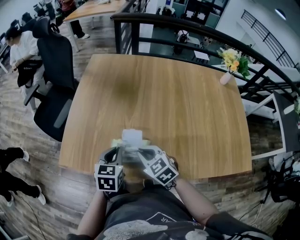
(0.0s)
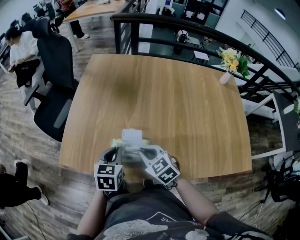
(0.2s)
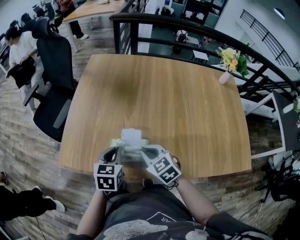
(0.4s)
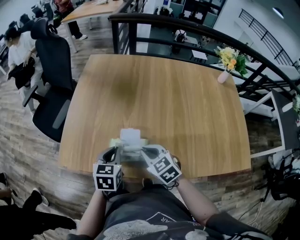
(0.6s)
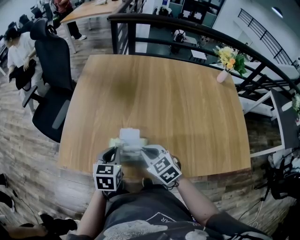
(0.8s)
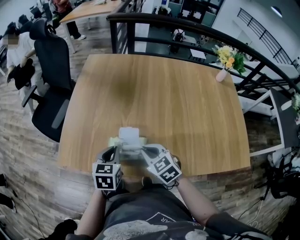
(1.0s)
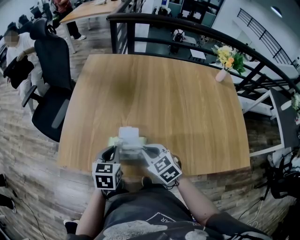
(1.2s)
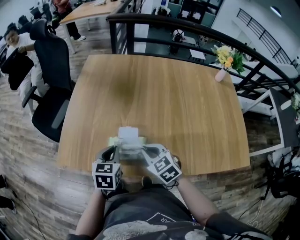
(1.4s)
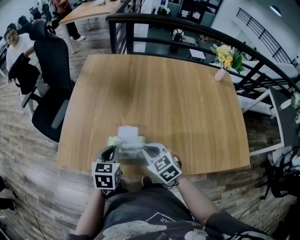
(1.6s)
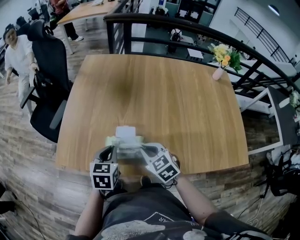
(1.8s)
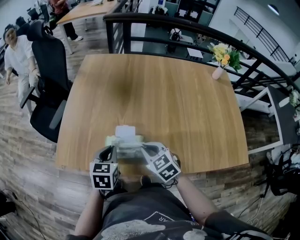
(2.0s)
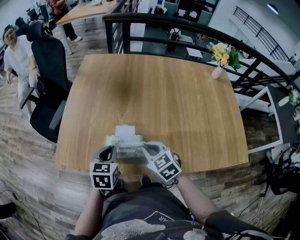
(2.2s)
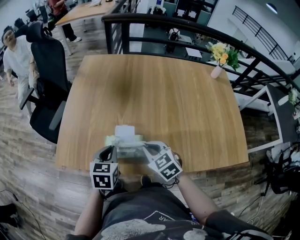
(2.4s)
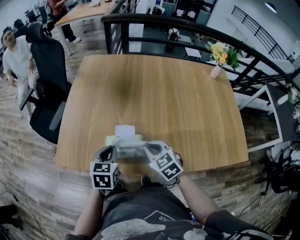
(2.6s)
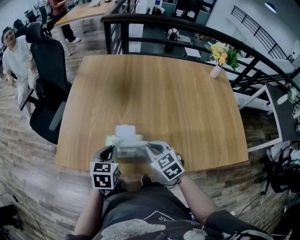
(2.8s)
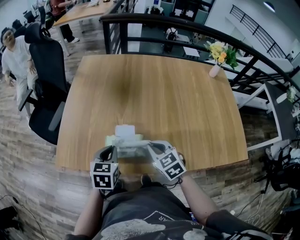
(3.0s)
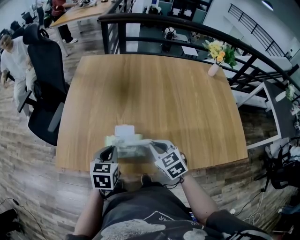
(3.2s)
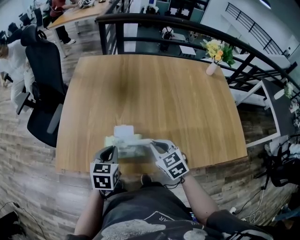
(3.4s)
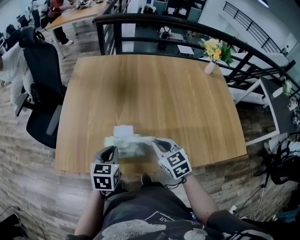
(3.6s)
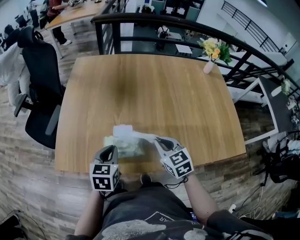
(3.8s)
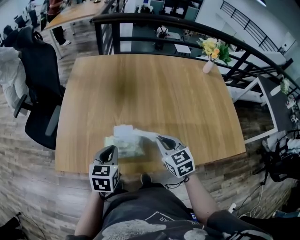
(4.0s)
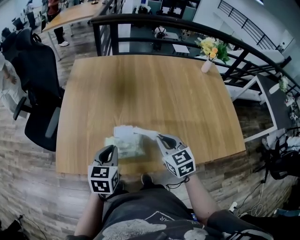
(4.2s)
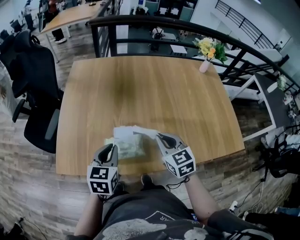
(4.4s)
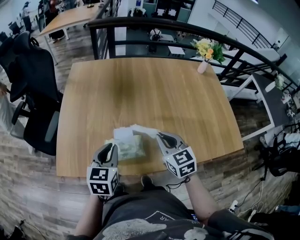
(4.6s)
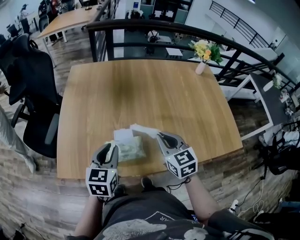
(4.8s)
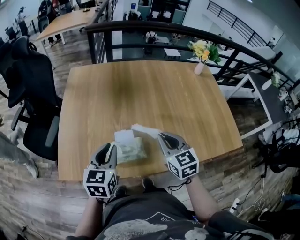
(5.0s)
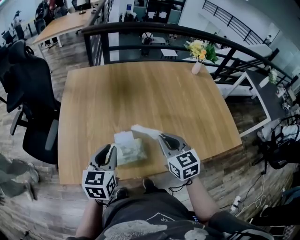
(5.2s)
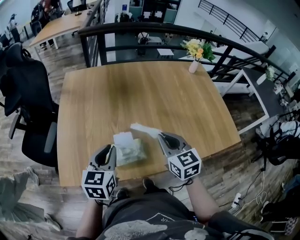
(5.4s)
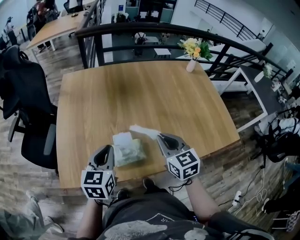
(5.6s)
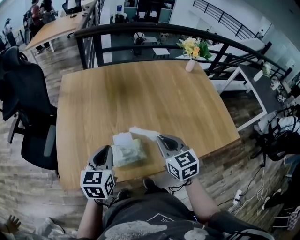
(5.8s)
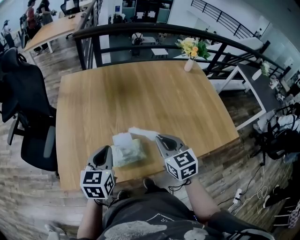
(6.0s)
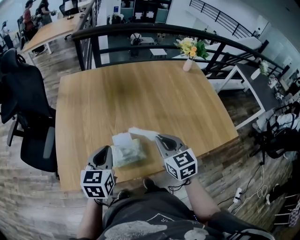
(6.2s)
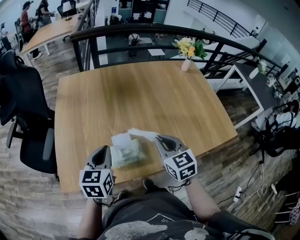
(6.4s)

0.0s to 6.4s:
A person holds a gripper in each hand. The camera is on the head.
0.0s to 1.6s: The grippers stay close to where they were, moving slightly.
1.6s to 3.2s: The grippers make only small movements.
3.2s to 4.8s: Both grippers travel together upward, approximately 10 cm. The right gripper rotates about 20 degrees.
4.8s to 6.4s: There are only small adjustments of the grippers.

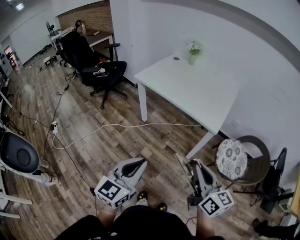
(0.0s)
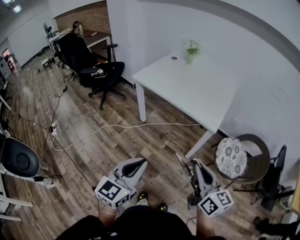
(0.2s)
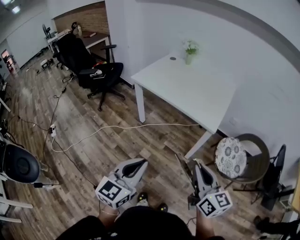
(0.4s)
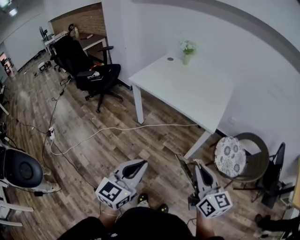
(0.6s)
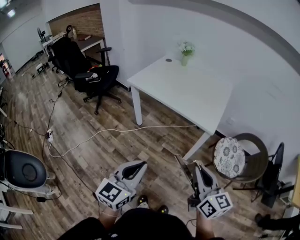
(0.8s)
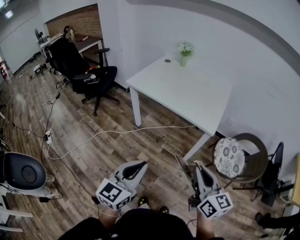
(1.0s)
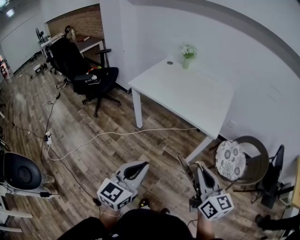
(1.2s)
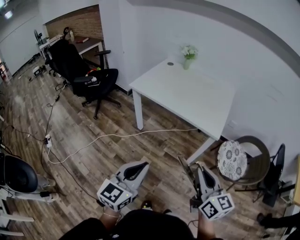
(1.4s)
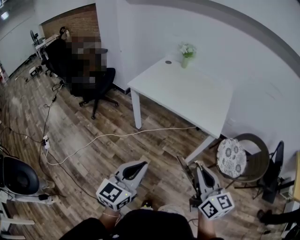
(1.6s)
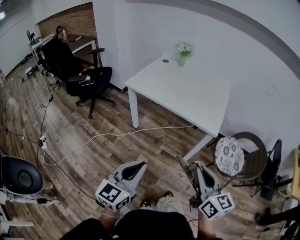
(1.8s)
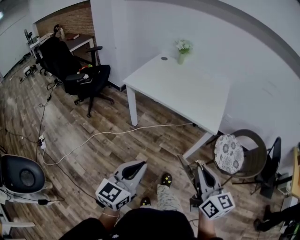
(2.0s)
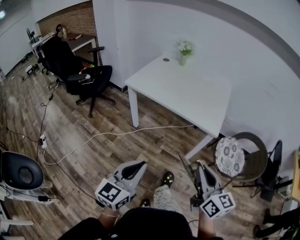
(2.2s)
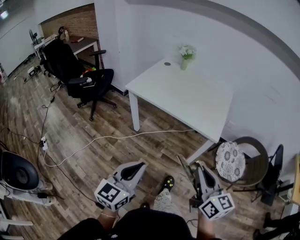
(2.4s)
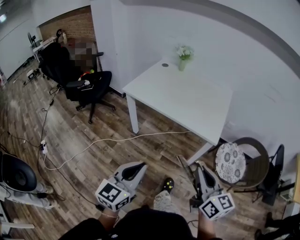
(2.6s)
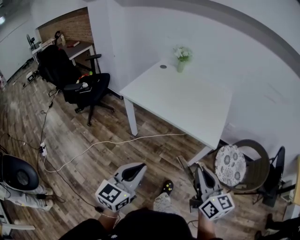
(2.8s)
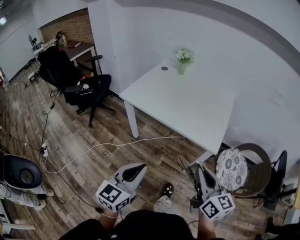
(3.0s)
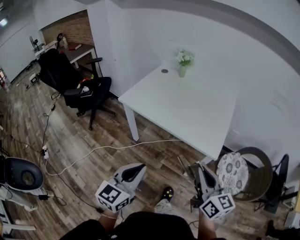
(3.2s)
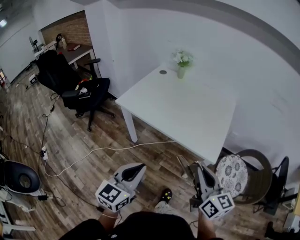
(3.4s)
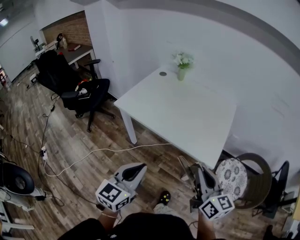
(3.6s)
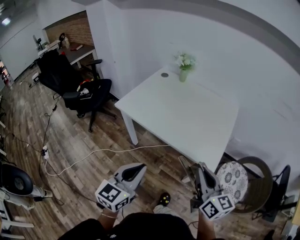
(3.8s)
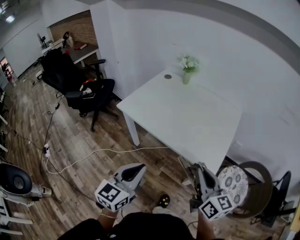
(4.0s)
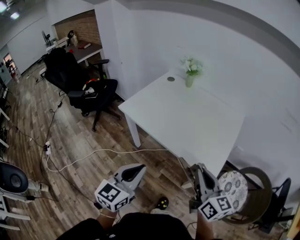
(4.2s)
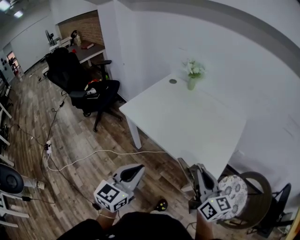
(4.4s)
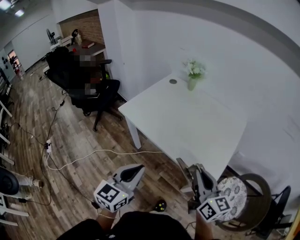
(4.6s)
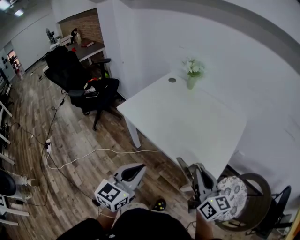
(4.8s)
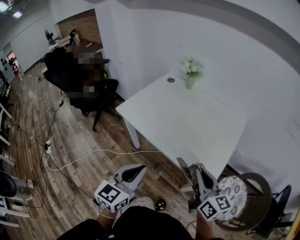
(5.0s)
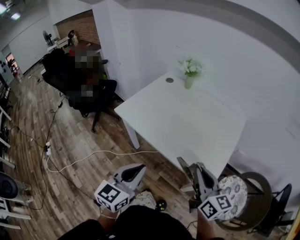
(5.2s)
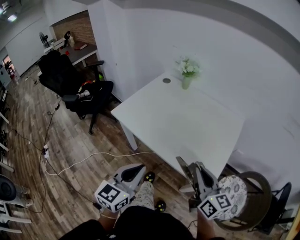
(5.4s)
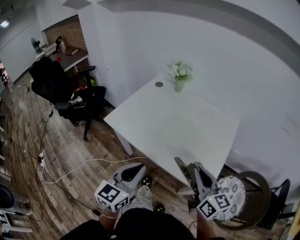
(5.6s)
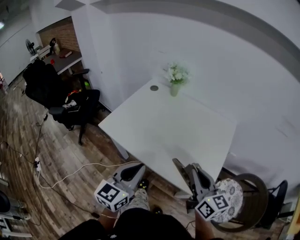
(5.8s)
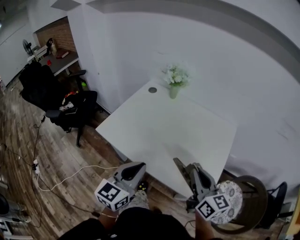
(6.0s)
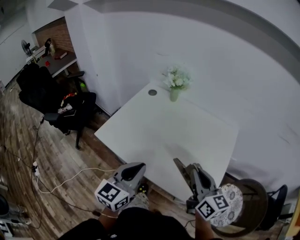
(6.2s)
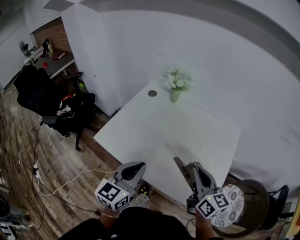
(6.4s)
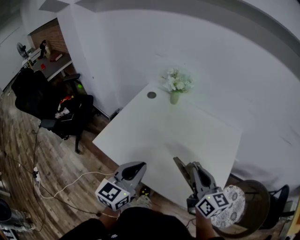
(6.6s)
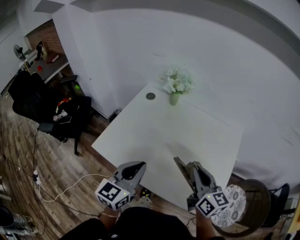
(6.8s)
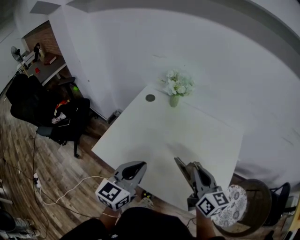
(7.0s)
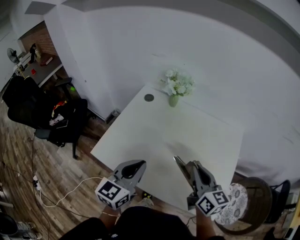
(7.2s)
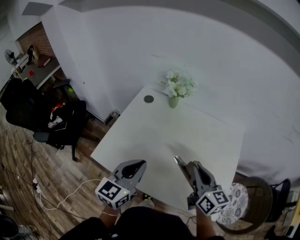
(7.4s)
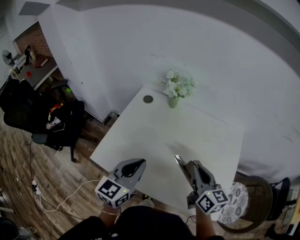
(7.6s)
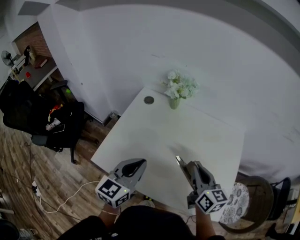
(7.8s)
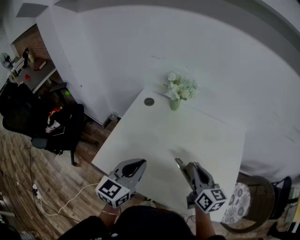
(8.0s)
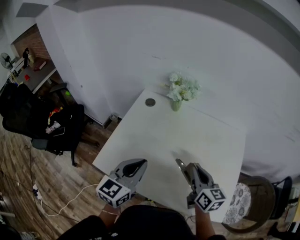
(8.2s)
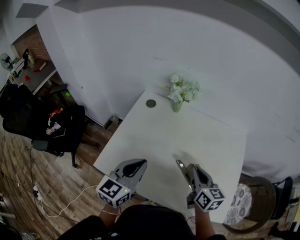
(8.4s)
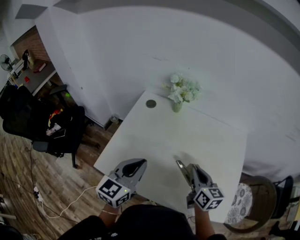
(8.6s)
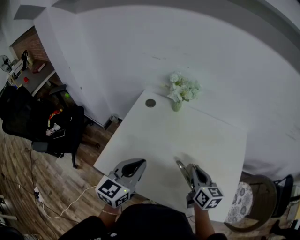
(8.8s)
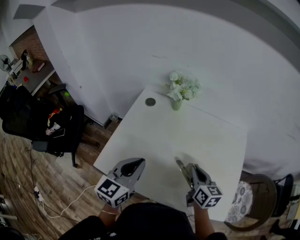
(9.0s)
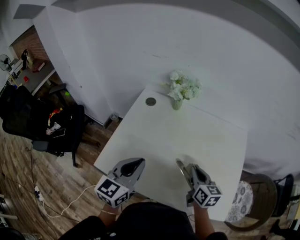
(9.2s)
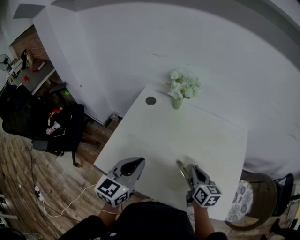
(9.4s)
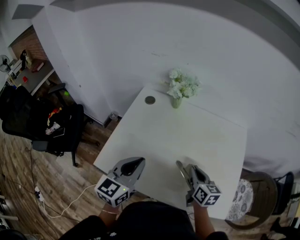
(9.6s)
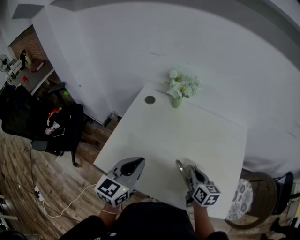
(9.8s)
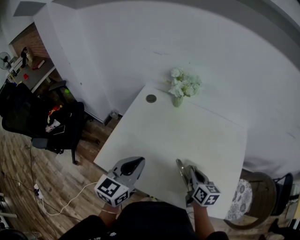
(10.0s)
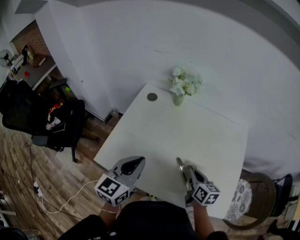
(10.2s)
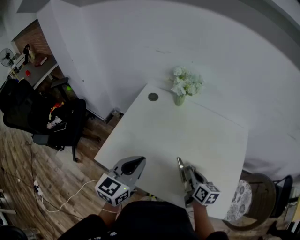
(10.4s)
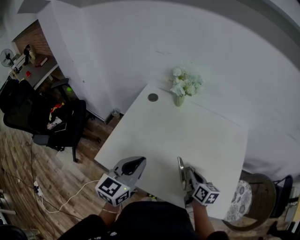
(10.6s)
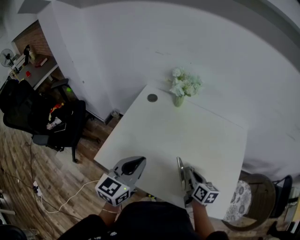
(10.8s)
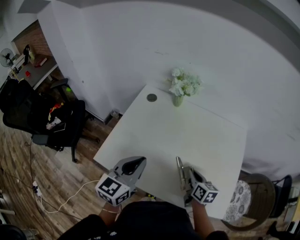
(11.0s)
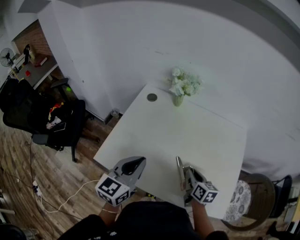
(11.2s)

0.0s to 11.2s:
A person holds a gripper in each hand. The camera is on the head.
0.0s to 1.6s: The right gripper travels to the left by approximately 5 cm. Meanwhile the left gripper is displaced to the left and forward by about 10 cm.
1.6s to 3.2s: Both grippers travel together forward, approximately 15 cm.
3.2s to 4.8s: The grippers both shift forward by approximately 15 cm.
4.8s to 6.4s: Both grippers move forward, some 20 cm.
6.4s to 8.0s: The left gripper is displaced forward and to the left by about 15 cm, while the right gripper heads forward, to the left and downward, covering some 15 cm.
8.0s to 9.6s: The right gripper travels downward by about 10 cm.
9.6s to 11.2s: The right gripper shifts by roughly 5 cm.

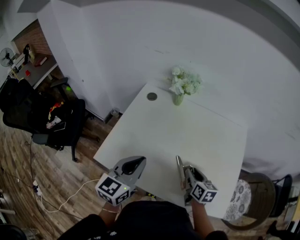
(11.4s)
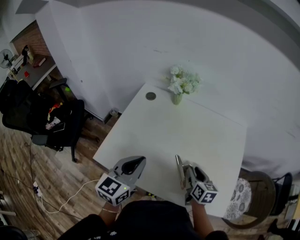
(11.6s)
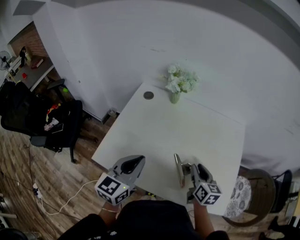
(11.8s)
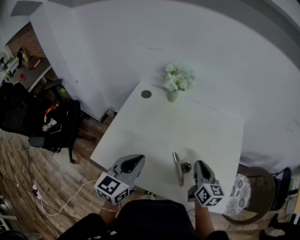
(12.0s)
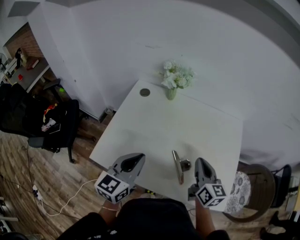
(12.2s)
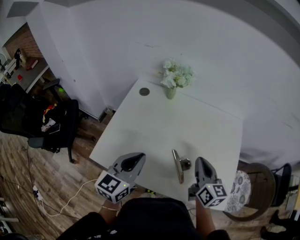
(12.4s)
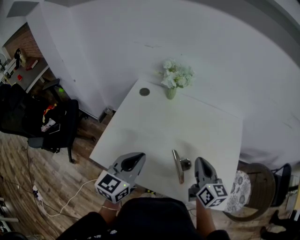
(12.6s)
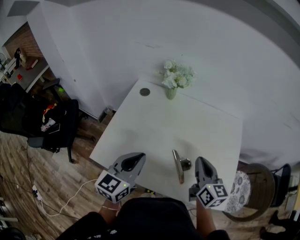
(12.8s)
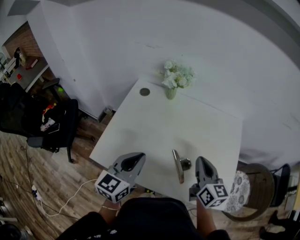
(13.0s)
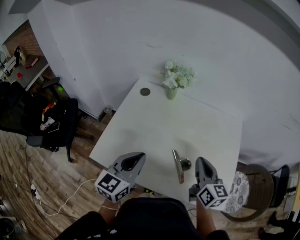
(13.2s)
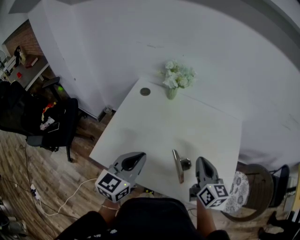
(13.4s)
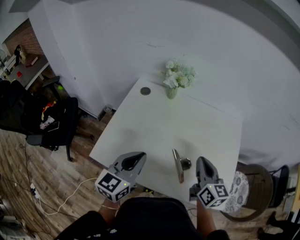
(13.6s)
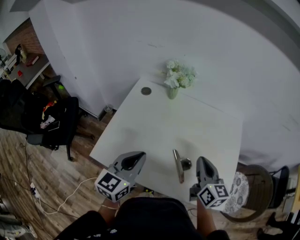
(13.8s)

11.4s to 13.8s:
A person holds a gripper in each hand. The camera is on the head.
11.4s to 12.6s: The right gripper goes some 10 cm upward, rotates approximately 20 degrees, and closes.
12.6s to 13.8s: Both grippers stay about where they are.

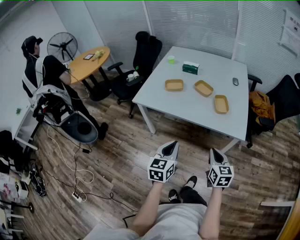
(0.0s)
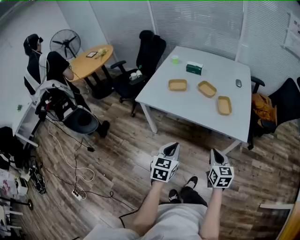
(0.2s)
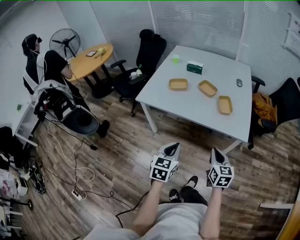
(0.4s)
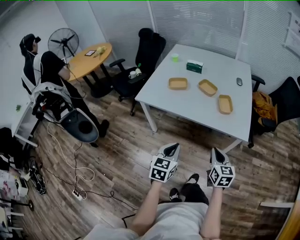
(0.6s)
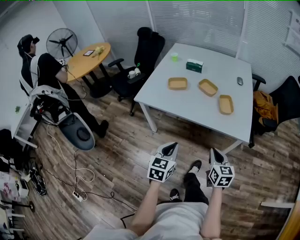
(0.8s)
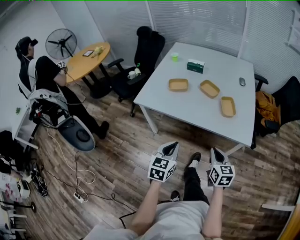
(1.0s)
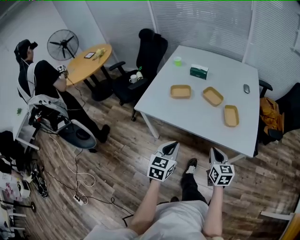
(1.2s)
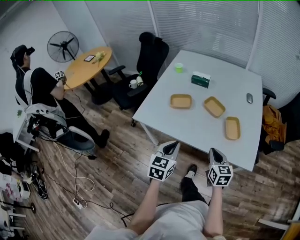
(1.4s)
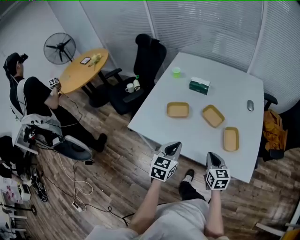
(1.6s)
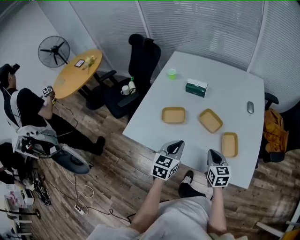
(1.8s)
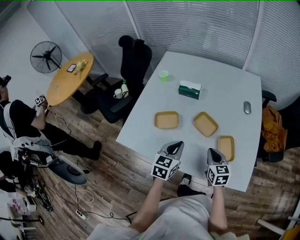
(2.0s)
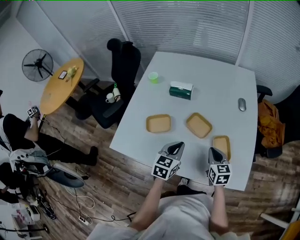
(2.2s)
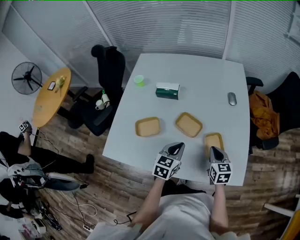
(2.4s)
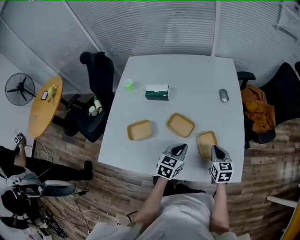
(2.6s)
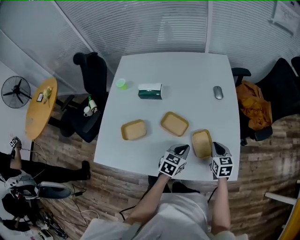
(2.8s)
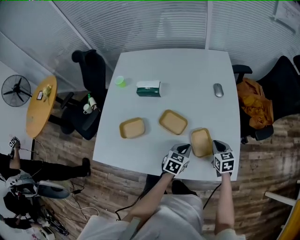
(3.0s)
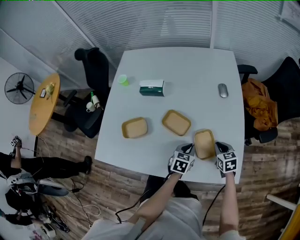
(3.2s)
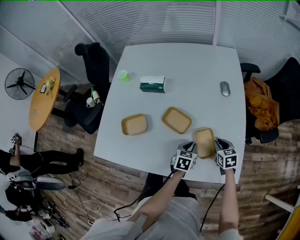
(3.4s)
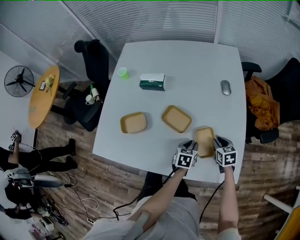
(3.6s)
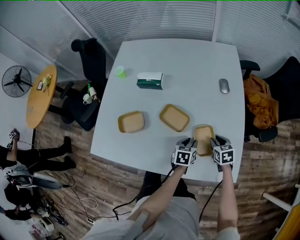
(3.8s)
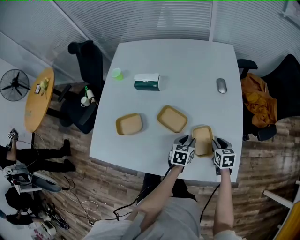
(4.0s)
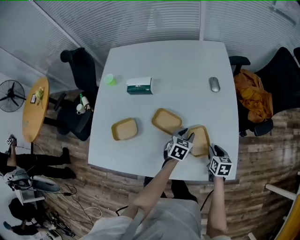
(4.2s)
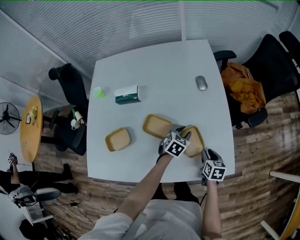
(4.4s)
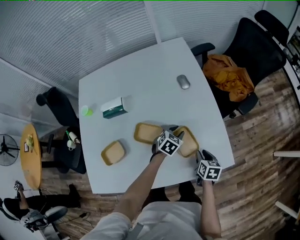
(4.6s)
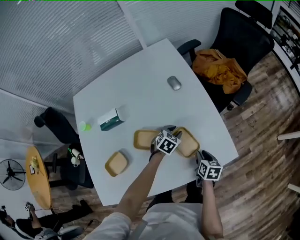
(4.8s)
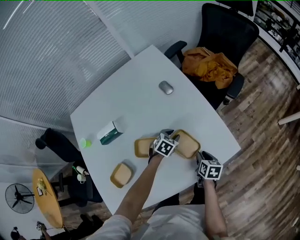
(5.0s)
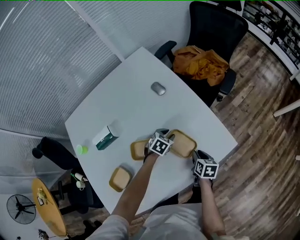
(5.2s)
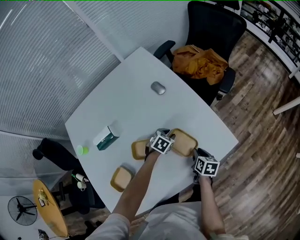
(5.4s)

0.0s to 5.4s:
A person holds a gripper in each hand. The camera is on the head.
0.0s to 1.4s: Both grippers move forward, roughly 20 cm.
1.4s to 2.8s: The left gripper ends up some 35 cm from where it was, and swivels about 30 degrees, while the right gripper moves about 30 cm, and turns by some 20 degrees.
2.8s to 4.0s: Both grippers travel together downward, some 10 cm. The left gripper opens its fingers. Meanwhile the right gripper opens its fingers.
4.0s to 5.4s: The right gripper moves approximately 10 cm, and rolls clockwise, seen from behind, by roughly 50 degrees. Meanwhile the left gripper moves some 10 cm, and twists approximately 60 degrees clockwise, seen from behind.
